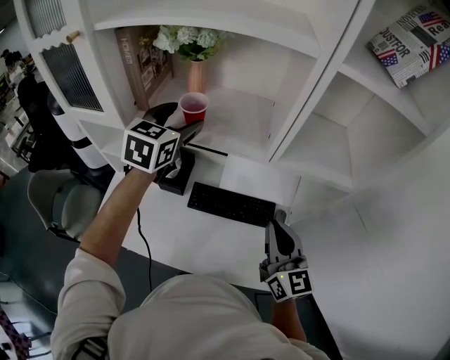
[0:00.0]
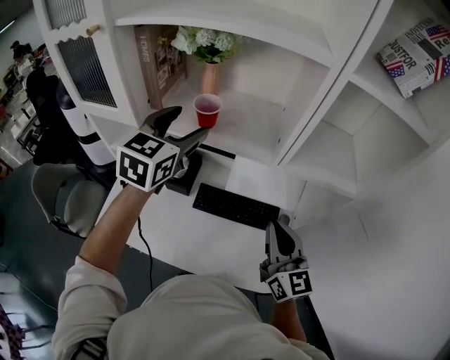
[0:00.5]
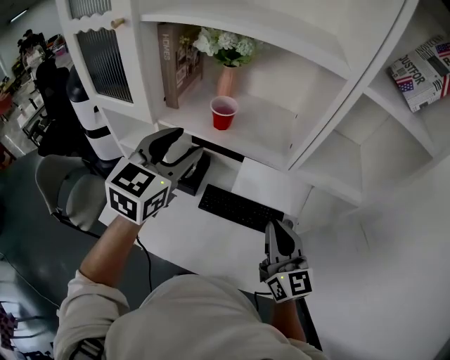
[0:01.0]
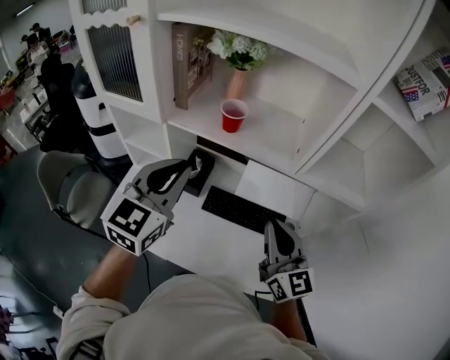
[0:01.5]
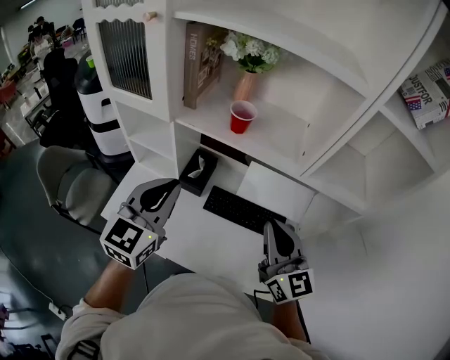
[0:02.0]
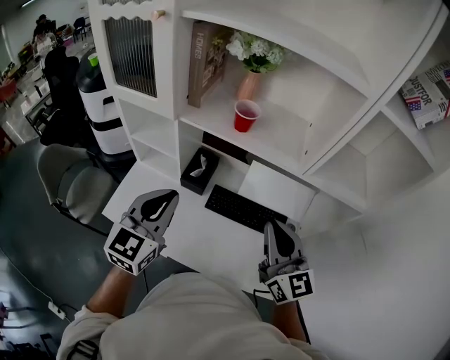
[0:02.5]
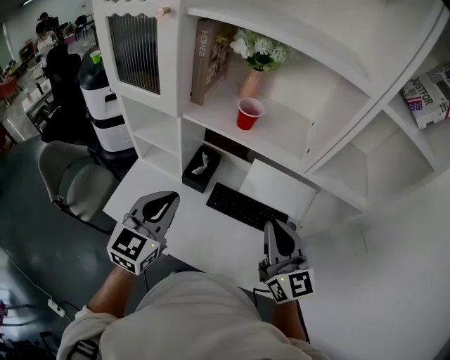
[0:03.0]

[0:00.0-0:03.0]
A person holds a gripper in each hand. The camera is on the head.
0:00.0 to 0:01.5: The right gripper moves to the left, approximately 5 cm. Meanwhile the left gripper shifts roughly 15 cm backward, and closes its fingers.
0:01.5 to 0:03.0: The left gripper is displaced downward, backward and to the left by approximately 10 cm.

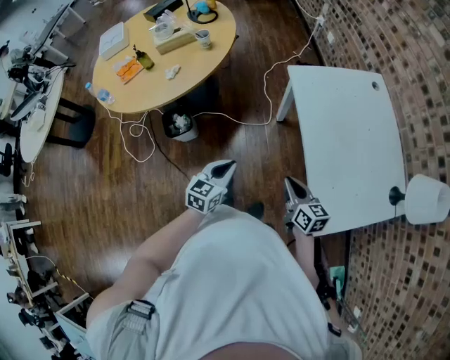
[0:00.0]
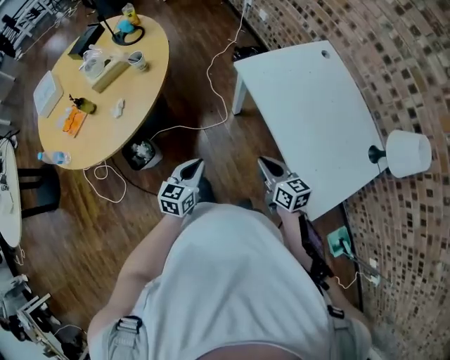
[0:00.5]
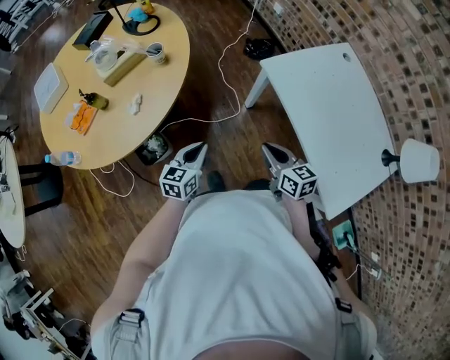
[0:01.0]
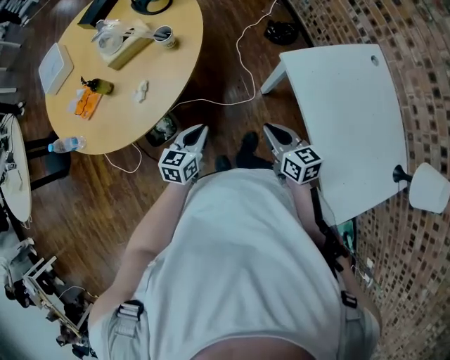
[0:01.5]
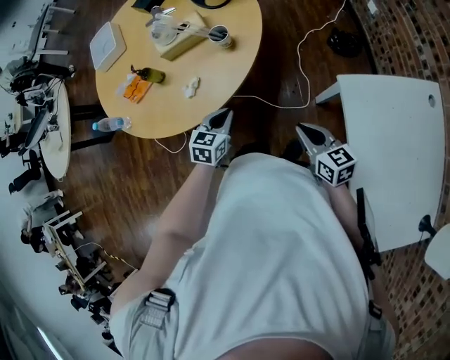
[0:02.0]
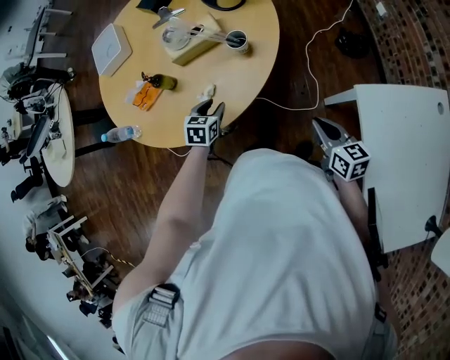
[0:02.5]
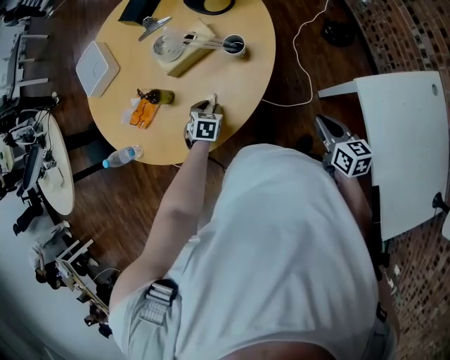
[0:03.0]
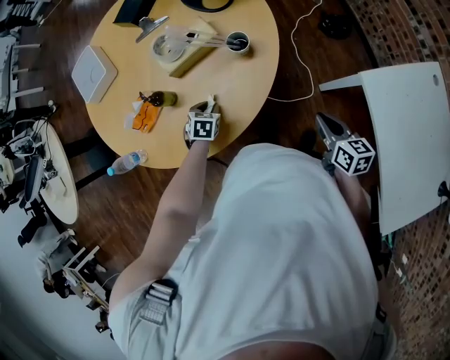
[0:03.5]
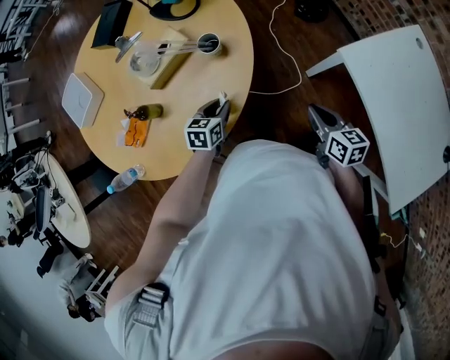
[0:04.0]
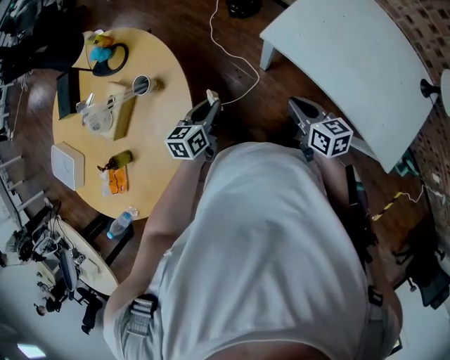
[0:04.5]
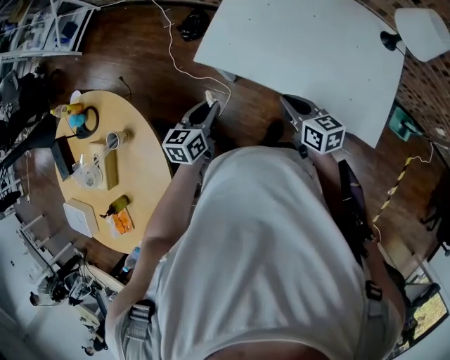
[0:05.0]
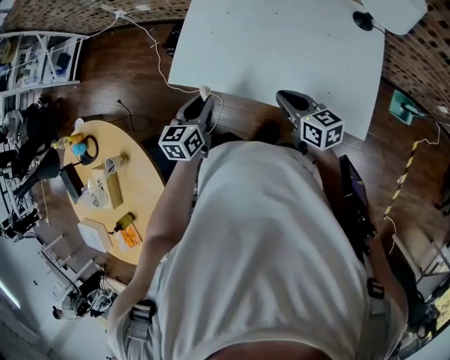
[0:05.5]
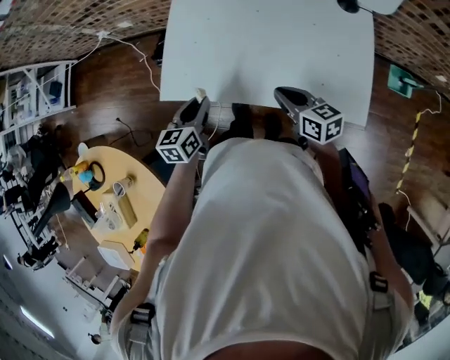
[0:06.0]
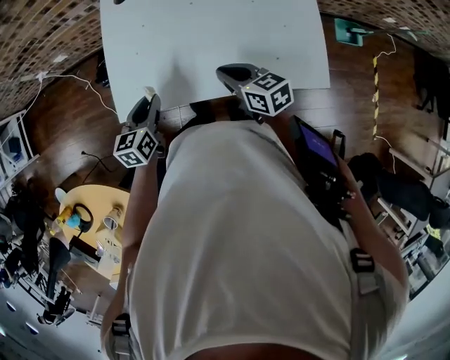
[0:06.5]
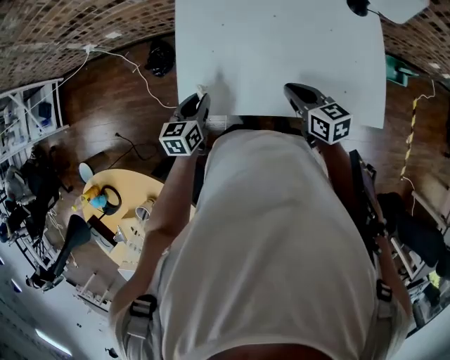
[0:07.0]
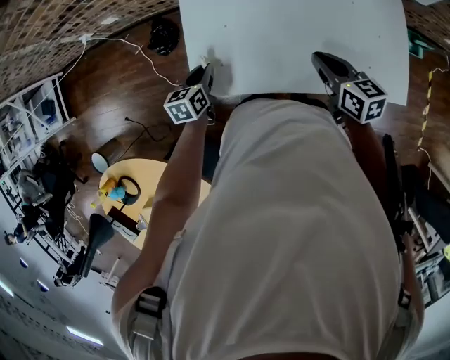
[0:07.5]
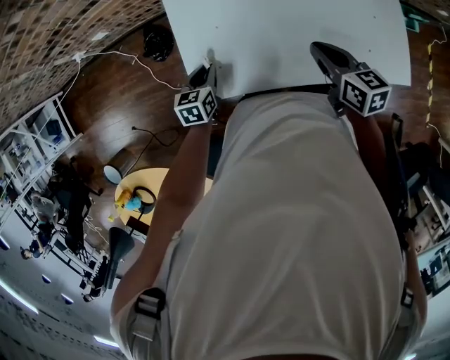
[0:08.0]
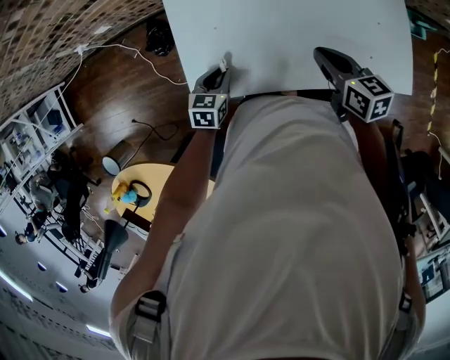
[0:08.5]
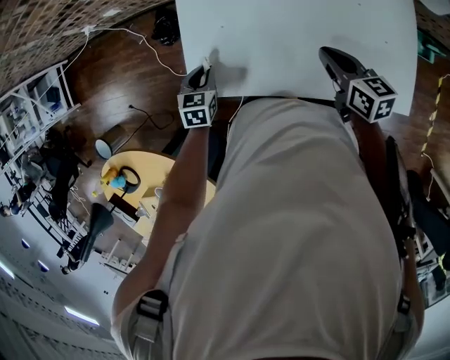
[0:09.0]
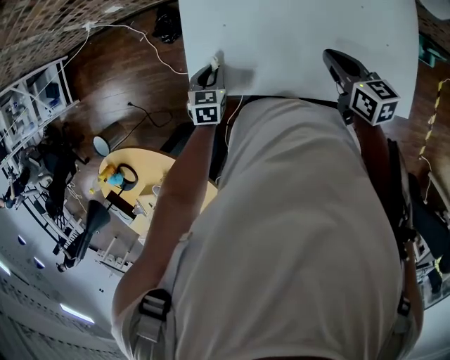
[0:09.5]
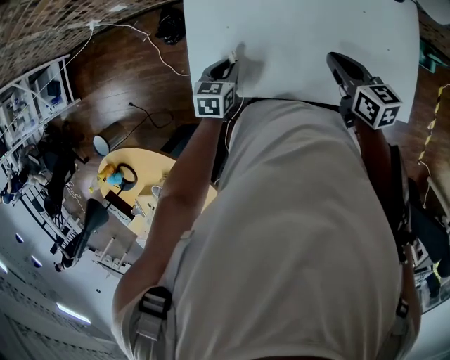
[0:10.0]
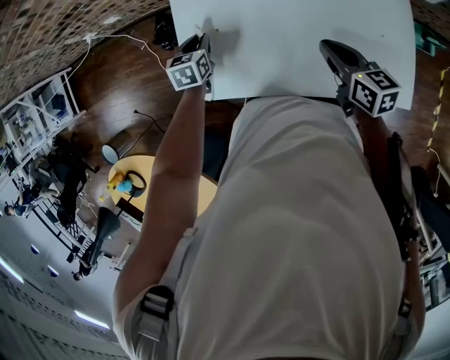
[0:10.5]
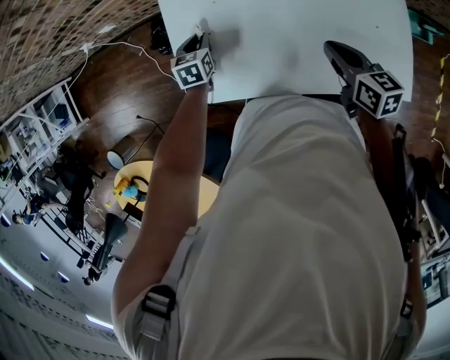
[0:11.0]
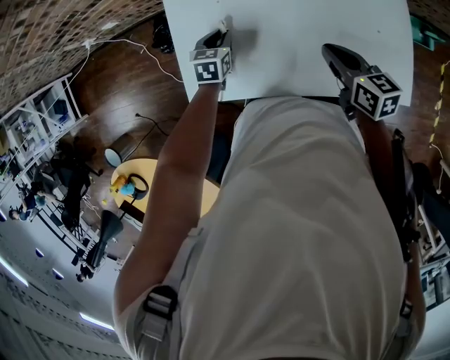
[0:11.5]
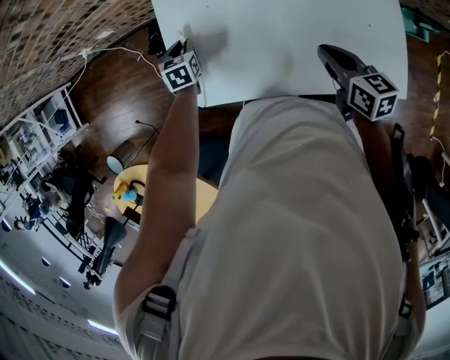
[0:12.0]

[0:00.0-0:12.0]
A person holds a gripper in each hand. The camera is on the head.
0:00.0 to 0:02.0: The pair of grippers is taken forward and to the left, roughly 40 cm. The right gripper changes its angle by about 20 degrees.
0:02.0 to 0:04.0: The right gripper shifts by roughly 10 cm, and rotates some 30 degrees; the left gripper opens its fingers.
0:04.0 to 0:06.0: The pair of grippers is taken some 50 cm. The left gripper changes its angle by some 50 degrees. The right gripper changes its angle by roughly 40 degrees.
0:06.0 to 0:08.0: The left gripper is displaced forward, downward and to the left by roughly 20 cm, and rotates roughly 20 degrees. Meanwhile the right gripper is displaced forward by roughly 10 cm, and rotates some 20 degrees.
0:08.0 to 0:10.0: The left gripper swings left and right, about 5 cm each way, with 2 reversals.
0:10.0 to 0:12.0: The left gripper moves forward, roughly 15 cm.

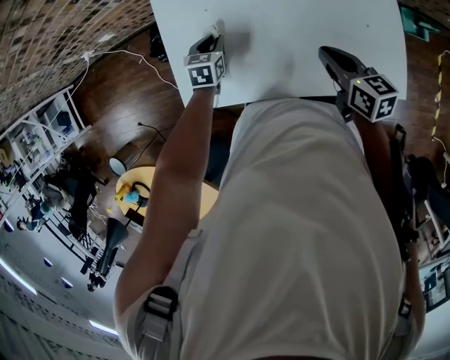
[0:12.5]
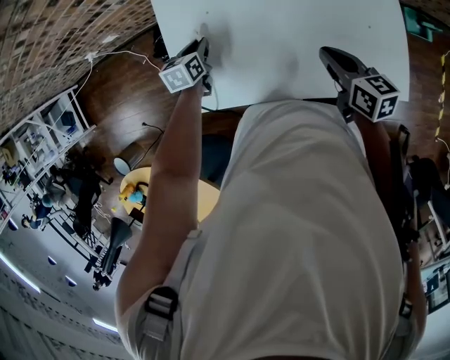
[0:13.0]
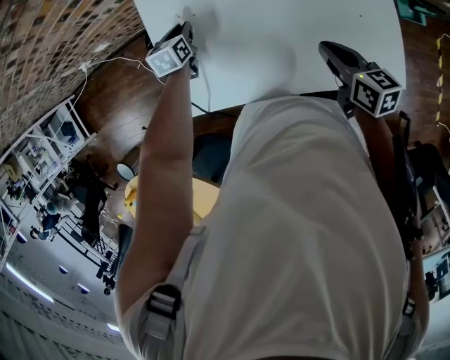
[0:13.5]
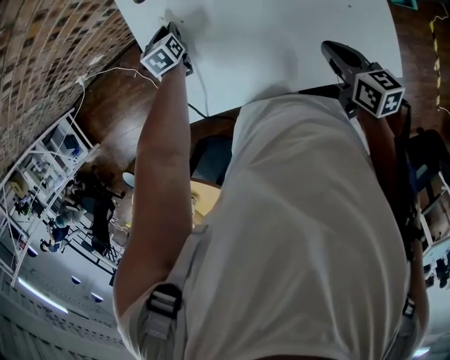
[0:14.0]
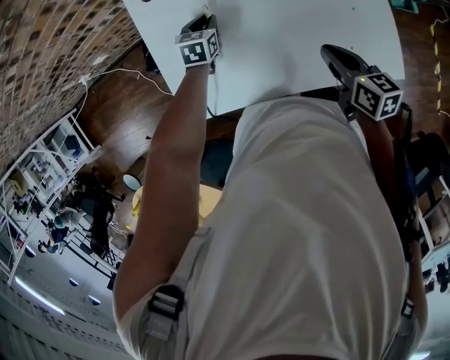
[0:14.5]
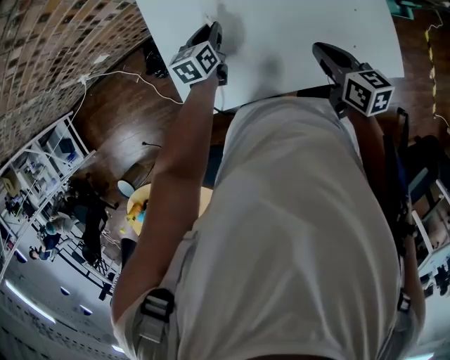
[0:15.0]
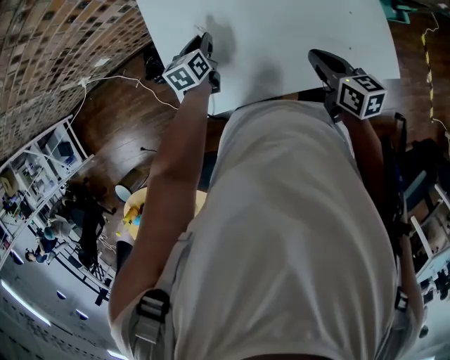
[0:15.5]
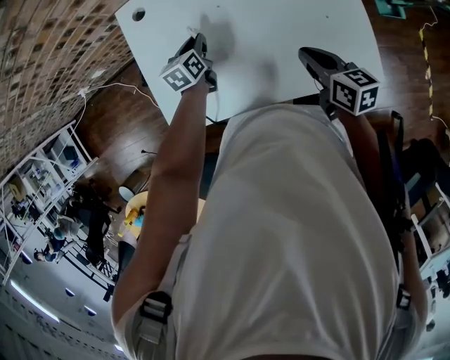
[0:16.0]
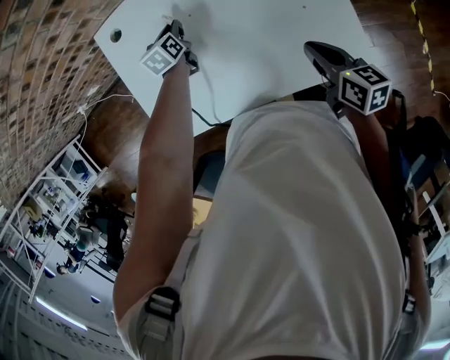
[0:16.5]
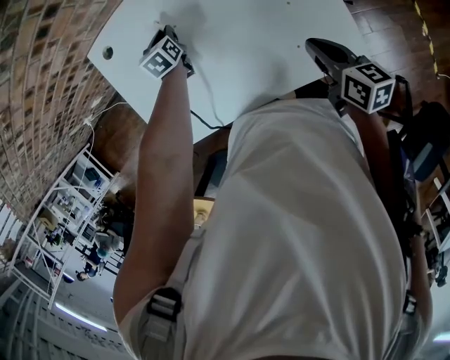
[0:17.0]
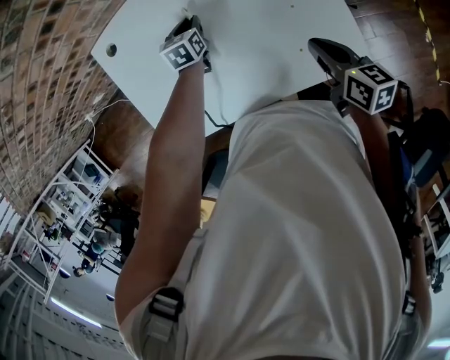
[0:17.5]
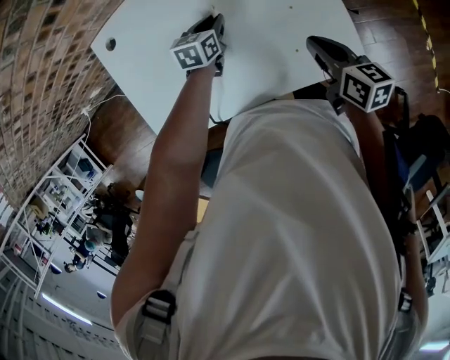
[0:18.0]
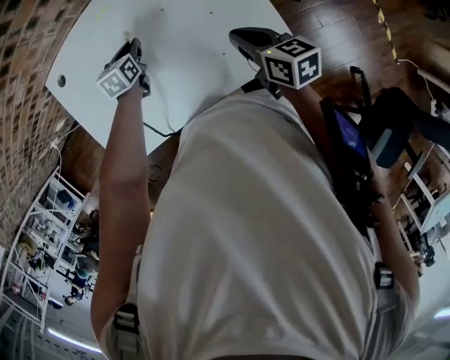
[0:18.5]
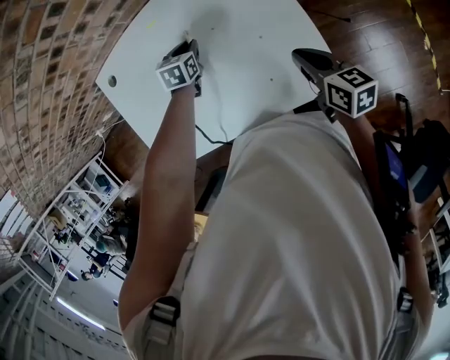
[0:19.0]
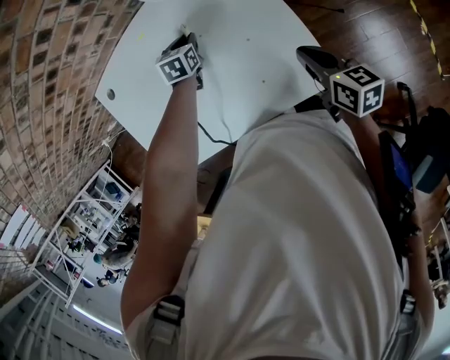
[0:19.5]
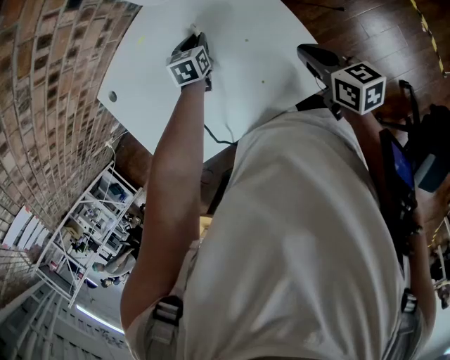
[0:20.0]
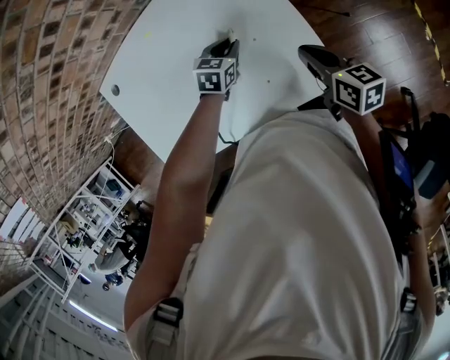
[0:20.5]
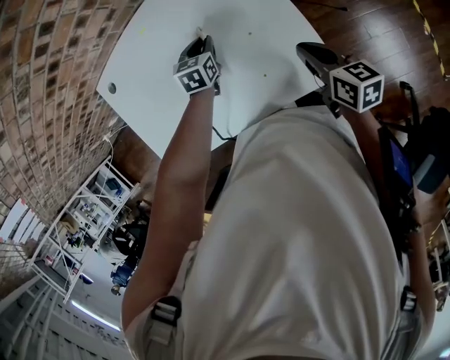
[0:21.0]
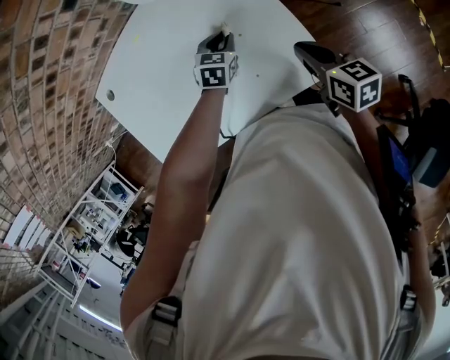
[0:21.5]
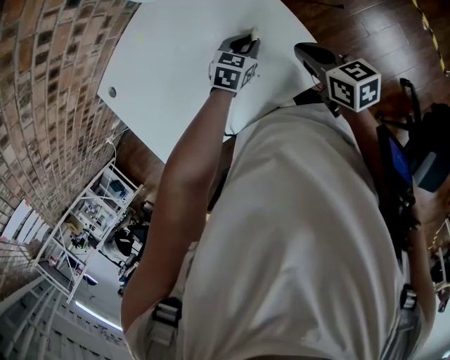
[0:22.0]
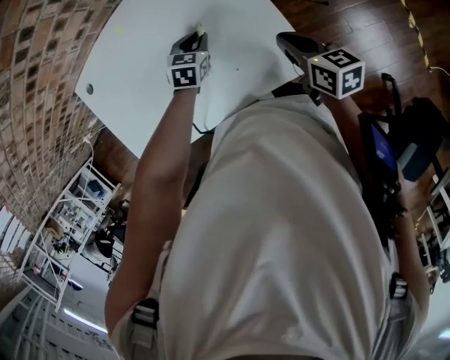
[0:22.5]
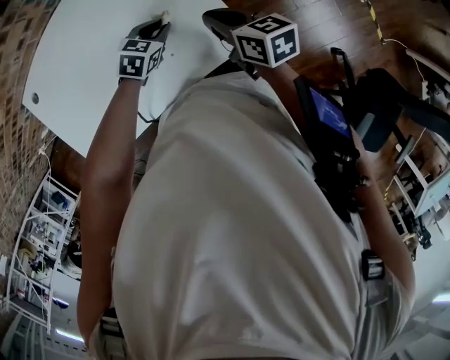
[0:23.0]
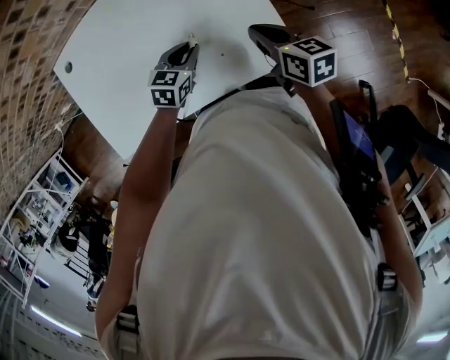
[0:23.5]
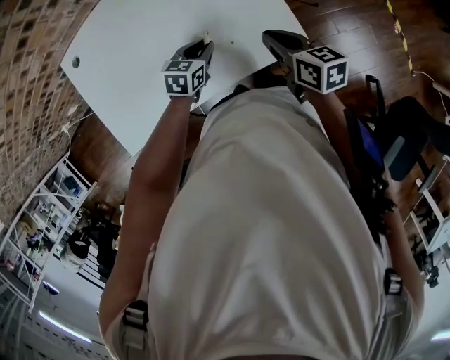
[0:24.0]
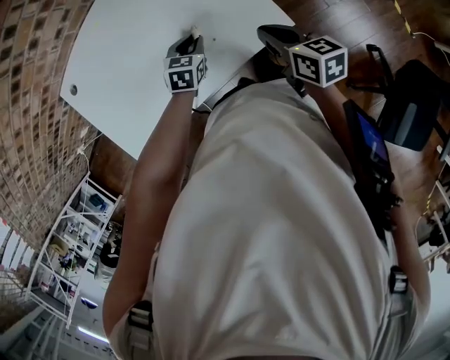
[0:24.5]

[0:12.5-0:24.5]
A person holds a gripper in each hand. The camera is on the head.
0:12.5 to 0:14.5: The left gripper is displaced forward and to the right by some 10 cm.
0:14.5 to 0:16.5: The right gripper is displaced to the right by approximately 10 cm, while the left gripper shifts some 10 cm to the right and forward, and changes its angle by roughly 20 degrees.
0:16.5 to 0:18.5: The right gripper goes some 5 cm to the right; the left gripper goes some 10 cm to the right.
0:18.5 to 0:20.5: The right gripper shifts approximately 10 cm to the right; the left gripper goes roughly 20 cm to the right, and swivels about 30 degrees.
0:20.5 to 0:22.5: The left gripper moves left and right over some 15 cm, changing direction 2 times.
0:22.5 to 0:24.5: Both grippers travel together backward, roughly 10 cm.
